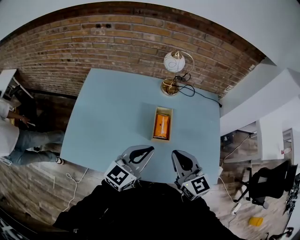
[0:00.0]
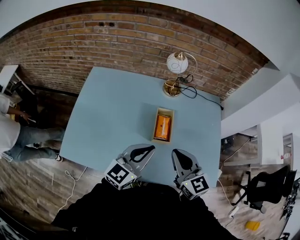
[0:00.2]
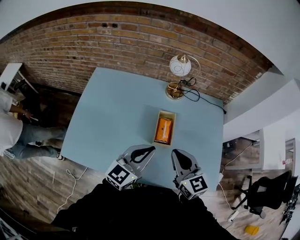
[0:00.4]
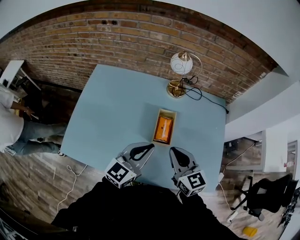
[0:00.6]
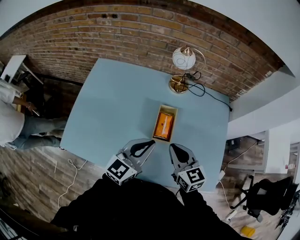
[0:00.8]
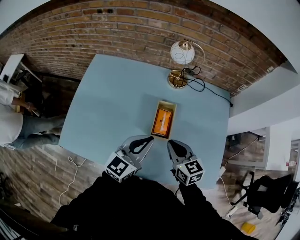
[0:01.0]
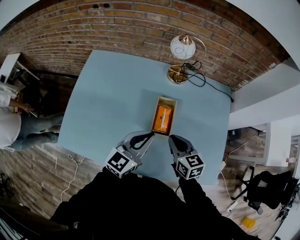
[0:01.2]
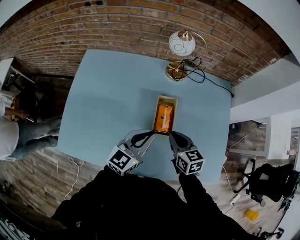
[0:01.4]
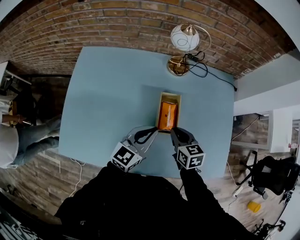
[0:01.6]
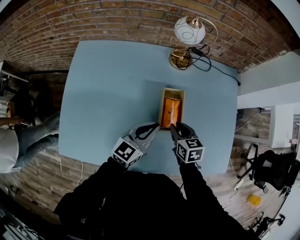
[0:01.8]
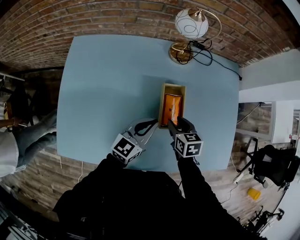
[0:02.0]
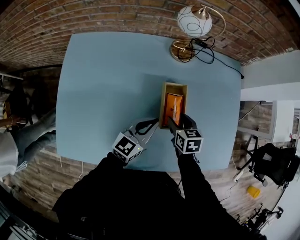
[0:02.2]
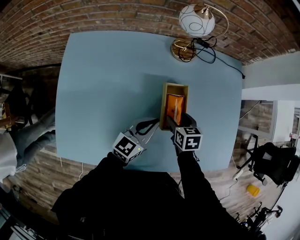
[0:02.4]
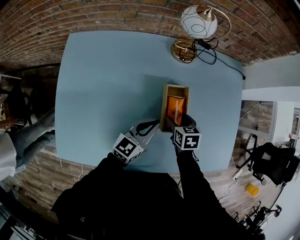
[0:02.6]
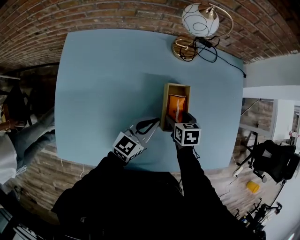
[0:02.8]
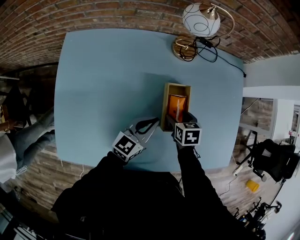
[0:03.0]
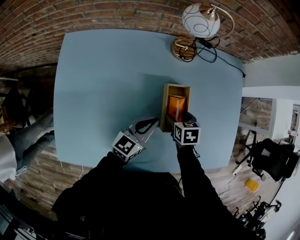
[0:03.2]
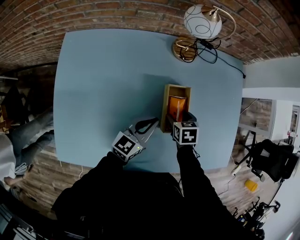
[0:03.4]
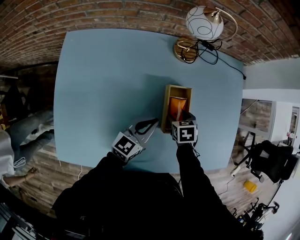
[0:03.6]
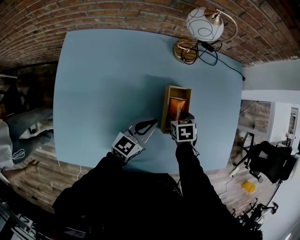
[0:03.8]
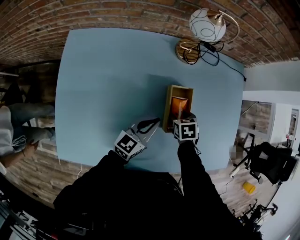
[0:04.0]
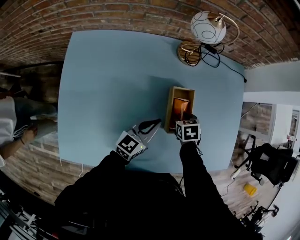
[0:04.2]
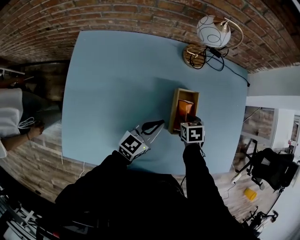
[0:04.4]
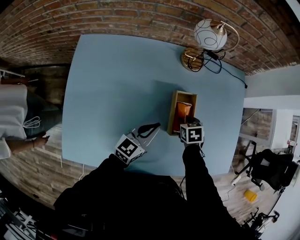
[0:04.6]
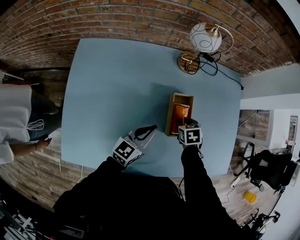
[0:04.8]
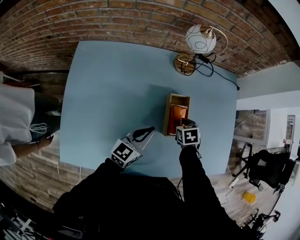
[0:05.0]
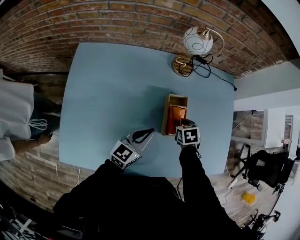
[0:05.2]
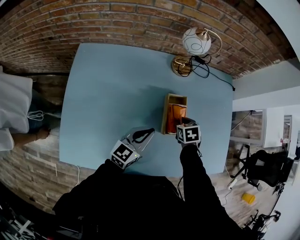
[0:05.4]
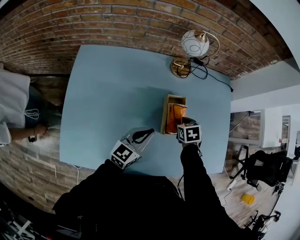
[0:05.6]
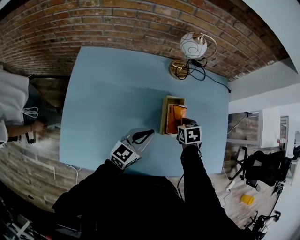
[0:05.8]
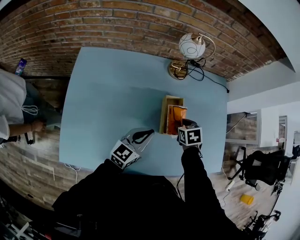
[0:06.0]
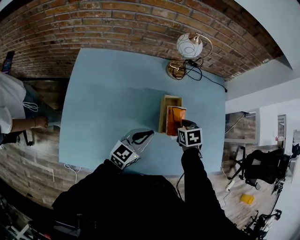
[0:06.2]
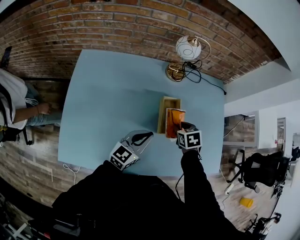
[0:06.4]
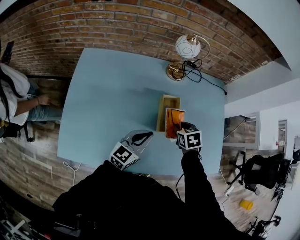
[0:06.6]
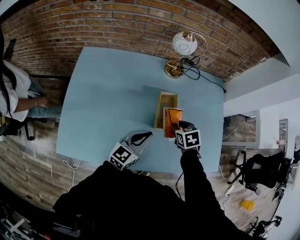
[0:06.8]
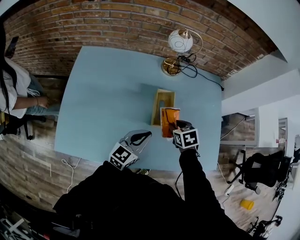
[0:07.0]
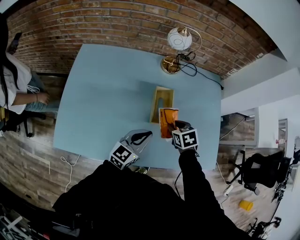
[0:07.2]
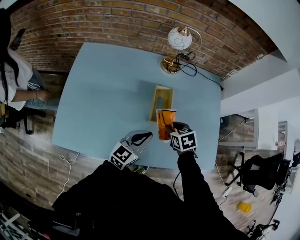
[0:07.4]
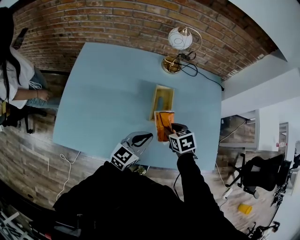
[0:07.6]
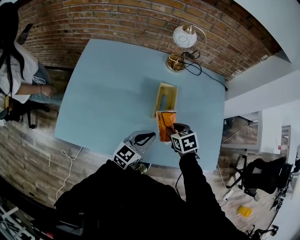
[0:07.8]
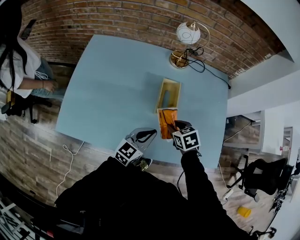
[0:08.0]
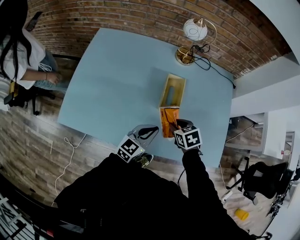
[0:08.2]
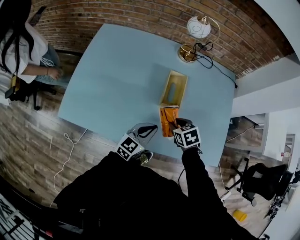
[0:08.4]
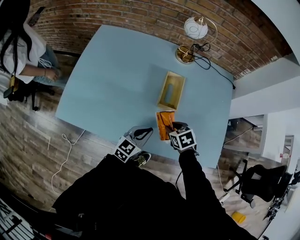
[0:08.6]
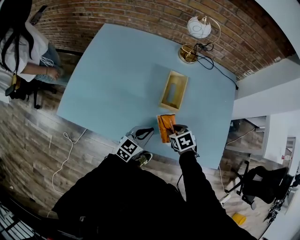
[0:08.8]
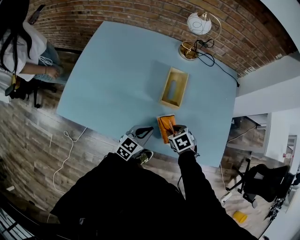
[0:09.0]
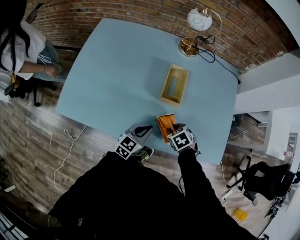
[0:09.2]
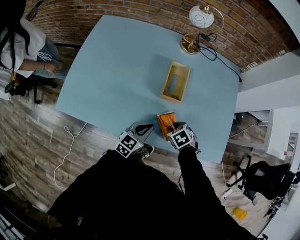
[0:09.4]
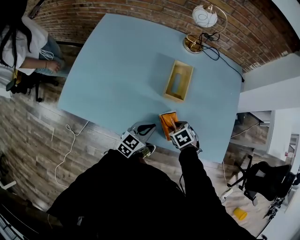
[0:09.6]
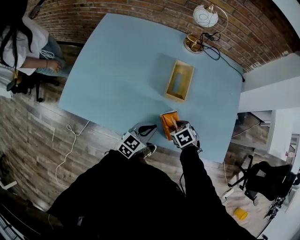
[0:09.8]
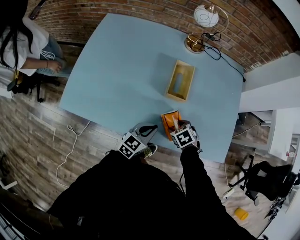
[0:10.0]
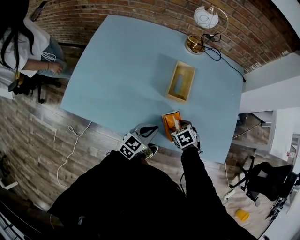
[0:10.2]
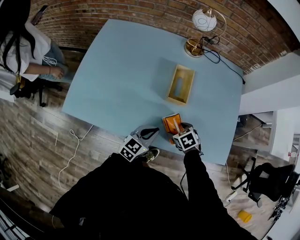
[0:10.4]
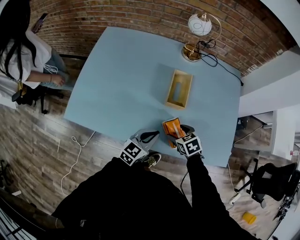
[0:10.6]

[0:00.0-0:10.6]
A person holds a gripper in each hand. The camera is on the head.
0:00.0 to 0:01.6: The right gripper travels downward and forward by roughly 25 cm, and swivels approximately 30 degrees. Meanwhile the left gripper heads forward and downward, covering approximately 15 cm.
0:01.6 to 0:03.0: The right gripper is displaced downward and forward by some 15 cm, turns by approximately 20 degrees, and opens, while the left gripper heads downward, covering about 10 cm.
0:03.0 to 0:04.6: The right gripper closes its fingers.
0:04.6 to 0:06.0: The right gripper heads upward, covering roughly 10 cm; the left gripper heads upward, covering approximately 5 cm.
0:06.0 to 0:07.6: The left gripper shifts some 15 cm to the right and backward; the right gripper goes approximately 10 cm backward.
0:07.6 to 0:09.0: The two grippers go about 15 cm downward and backward.
0:09.0 to 0:10.6: The right gripper opens up.

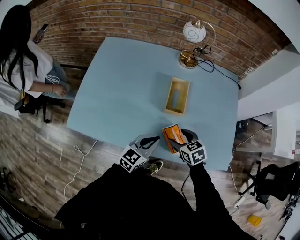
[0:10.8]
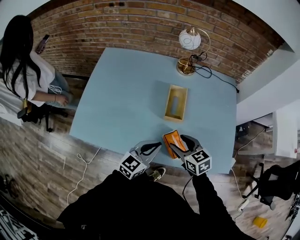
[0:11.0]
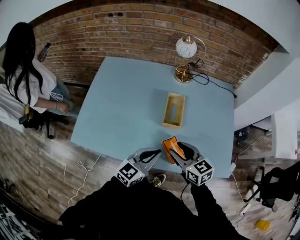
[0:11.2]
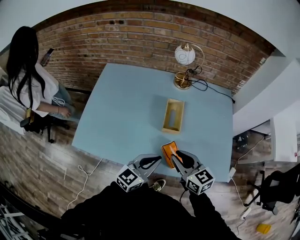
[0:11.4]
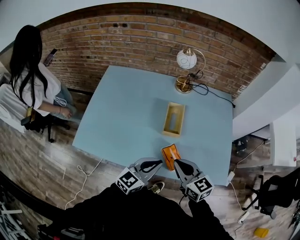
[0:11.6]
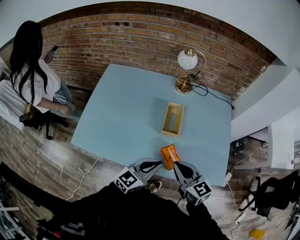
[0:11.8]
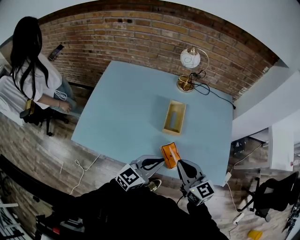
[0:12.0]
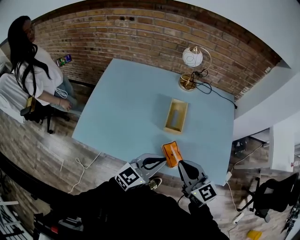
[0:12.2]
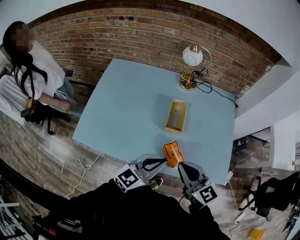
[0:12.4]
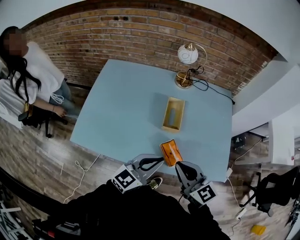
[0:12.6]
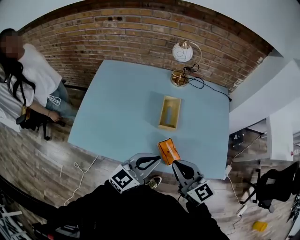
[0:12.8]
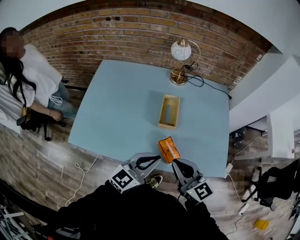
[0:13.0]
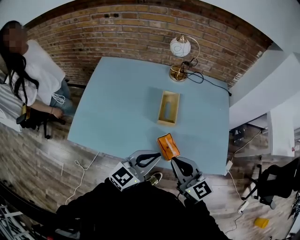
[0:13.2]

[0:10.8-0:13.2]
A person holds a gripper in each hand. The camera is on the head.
0:10.8 to 0:12.0: The right gripper moves upward, some 20 cm, points its fingers some 30 degrees further upward, and closes up. Meanwhile the left gripper moves upward, about 10 cm.
0:12.0 to 0:13.2: The grippers make only small movements.

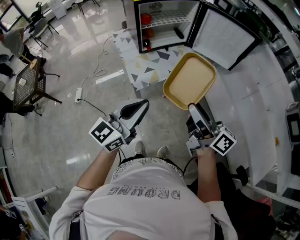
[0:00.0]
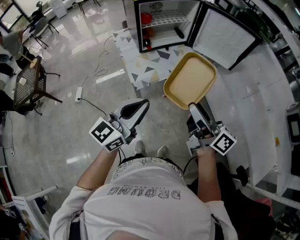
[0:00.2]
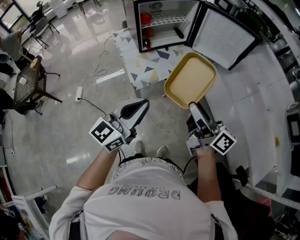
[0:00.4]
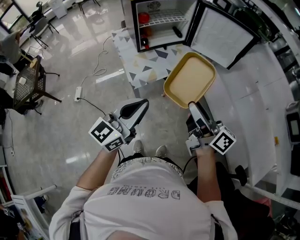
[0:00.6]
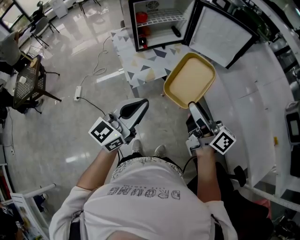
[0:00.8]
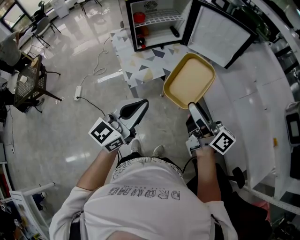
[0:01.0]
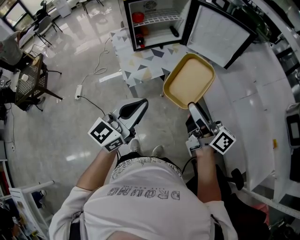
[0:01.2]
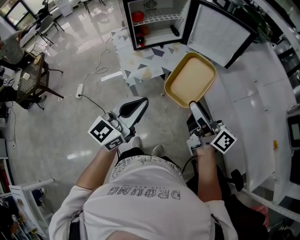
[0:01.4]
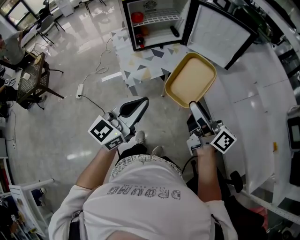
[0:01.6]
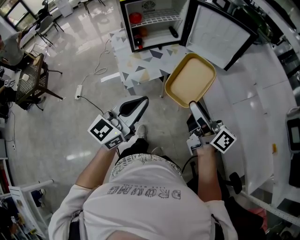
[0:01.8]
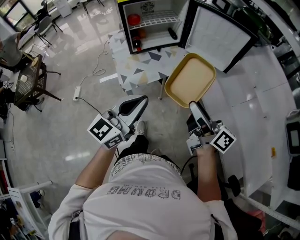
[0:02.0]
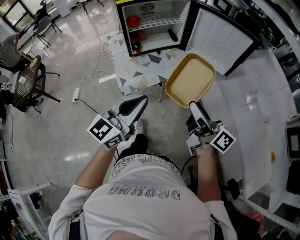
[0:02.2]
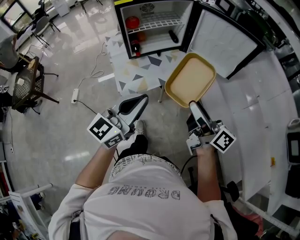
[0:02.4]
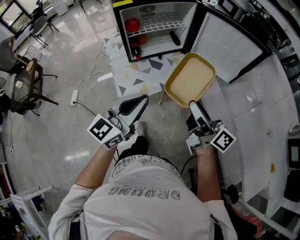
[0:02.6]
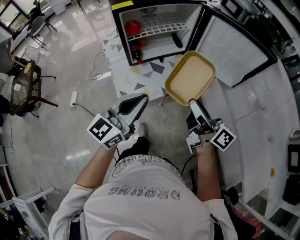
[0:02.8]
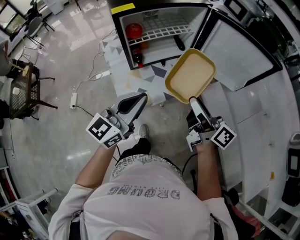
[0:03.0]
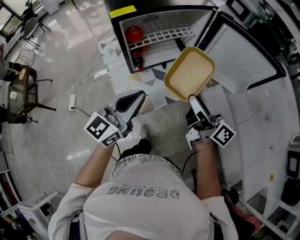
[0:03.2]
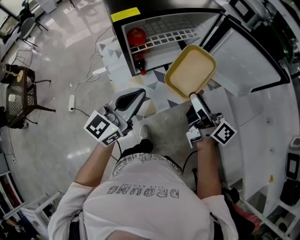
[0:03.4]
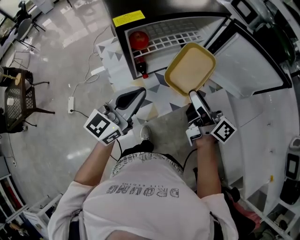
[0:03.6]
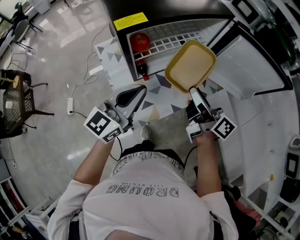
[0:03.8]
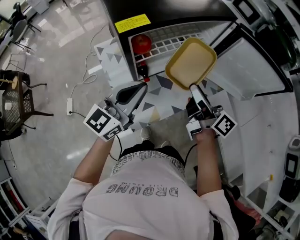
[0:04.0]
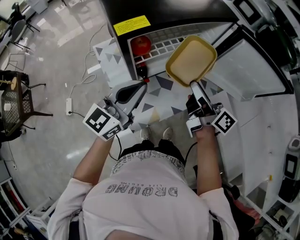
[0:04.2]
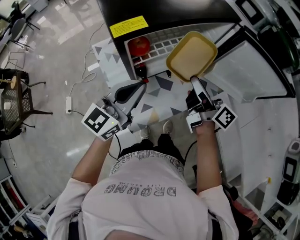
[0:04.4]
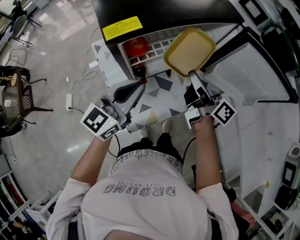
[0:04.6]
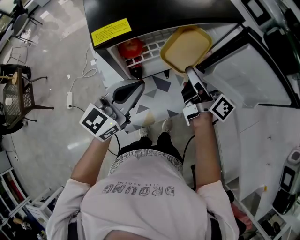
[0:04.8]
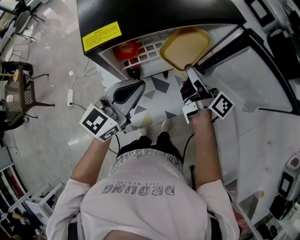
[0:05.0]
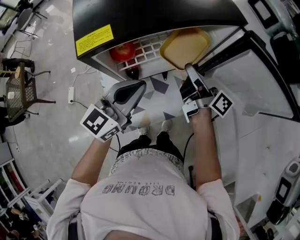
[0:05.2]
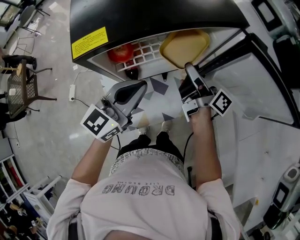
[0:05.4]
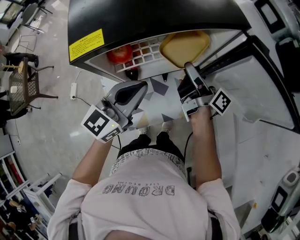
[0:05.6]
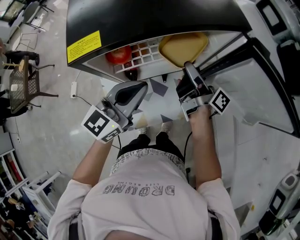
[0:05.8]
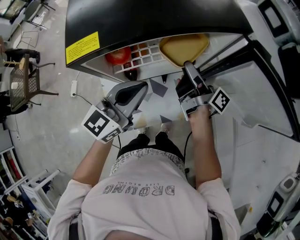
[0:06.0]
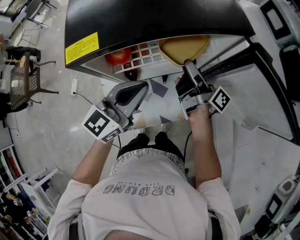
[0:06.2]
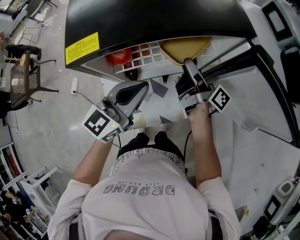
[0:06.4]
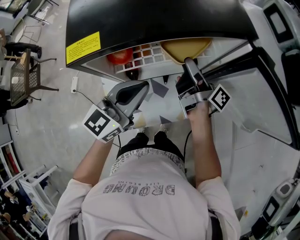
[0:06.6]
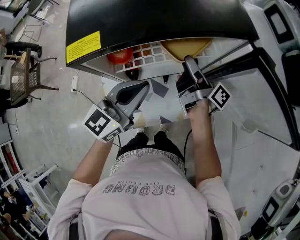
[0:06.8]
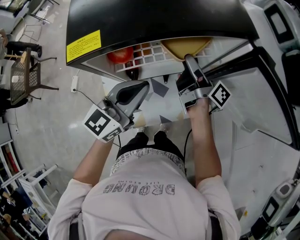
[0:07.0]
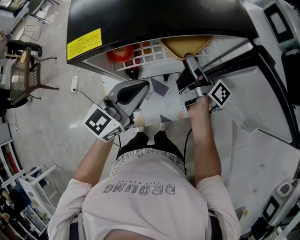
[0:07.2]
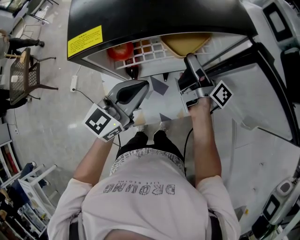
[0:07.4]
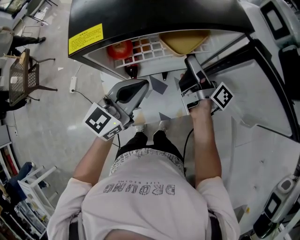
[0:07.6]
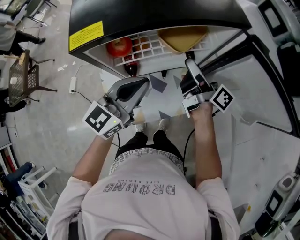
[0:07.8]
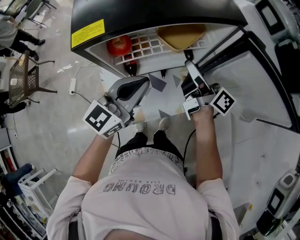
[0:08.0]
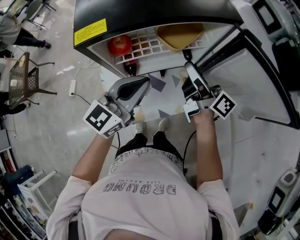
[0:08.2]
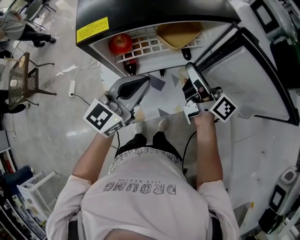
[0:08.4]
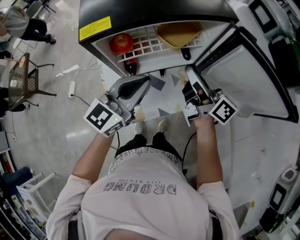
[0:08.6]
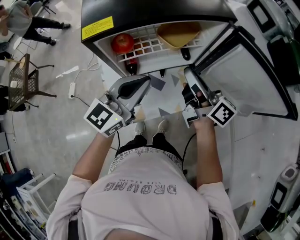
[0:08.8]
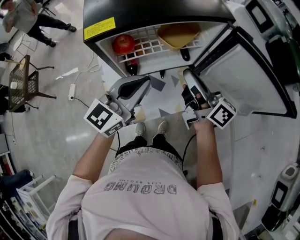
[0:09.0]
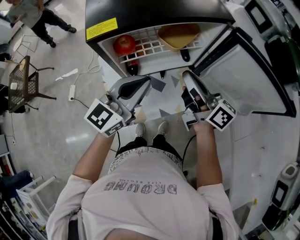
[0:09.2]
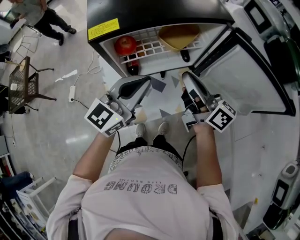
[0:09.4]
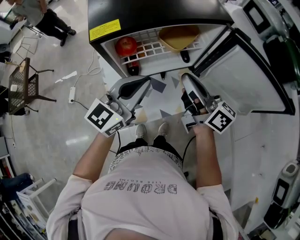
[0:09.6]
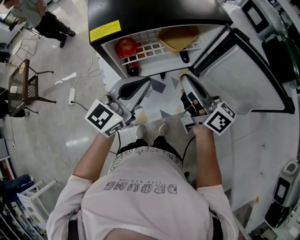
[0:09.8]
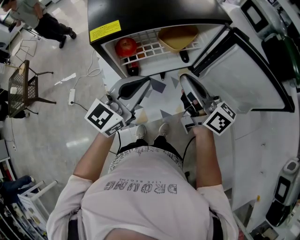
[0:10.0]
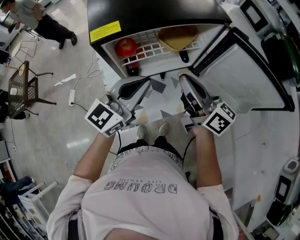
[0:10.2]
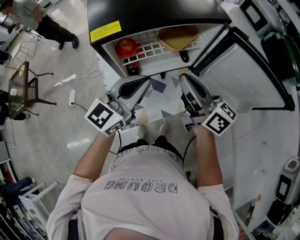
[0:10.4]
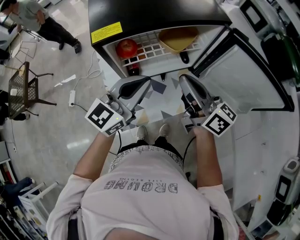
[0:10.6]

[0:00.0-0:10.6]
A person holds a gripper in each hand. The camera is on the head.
0:00.0 to 0:01.6: The grippers both shift to the right by about 10 cm.
0:01.6 to 0:03.0: Both grippers travel together forward, about 25 cm.
0:03.0 to 0:04.6: Both grippers move forward, some 20 cm.
0:04.6 to 0:06.0: The right gripper heads forward and downward, covering approximately 10 cm, and changes its angle by approximately 30 degrees. The left gripper heads to the right and forward, covering roughly 10 cm.
0:06.0 to 0:07.6: There are only small adjustments of the grippers.
0:07.6 to 0:09.0: The left gripper changes place by about 5 cm. The right gripper is displaced backward and upward by approximately 15 cm, changes its angle by approximately 30 degrees, and closes up.
0:09.0 to 0:10.6: The grippers move only a little.
